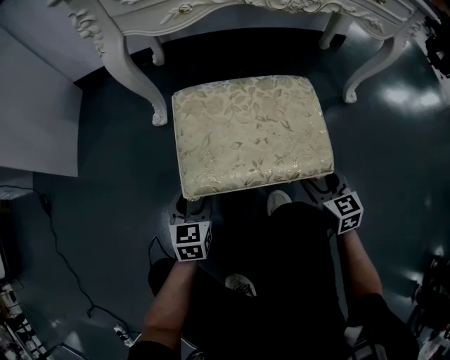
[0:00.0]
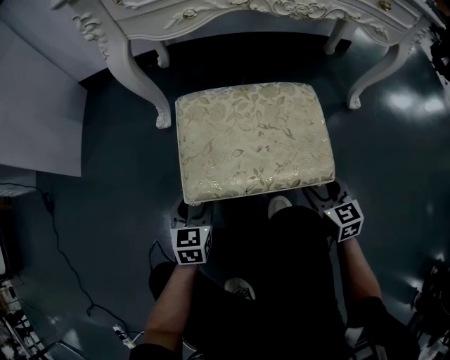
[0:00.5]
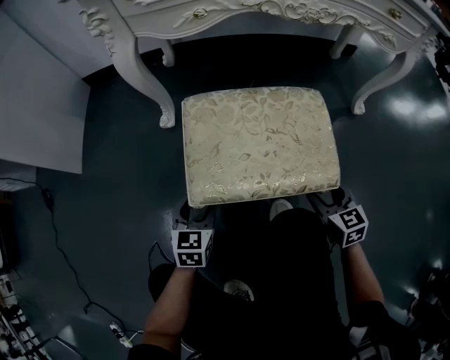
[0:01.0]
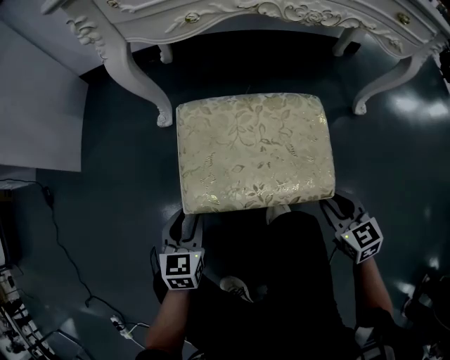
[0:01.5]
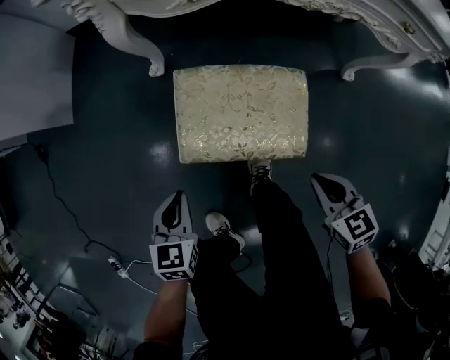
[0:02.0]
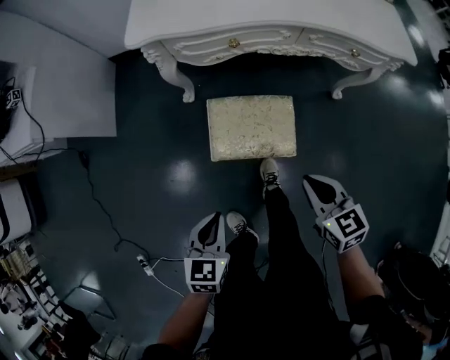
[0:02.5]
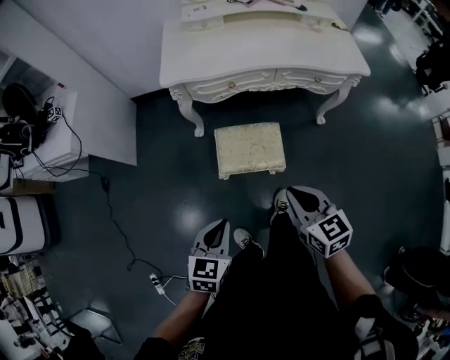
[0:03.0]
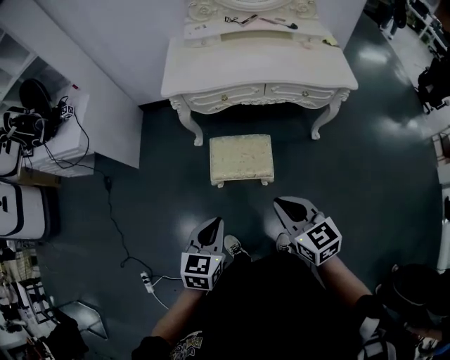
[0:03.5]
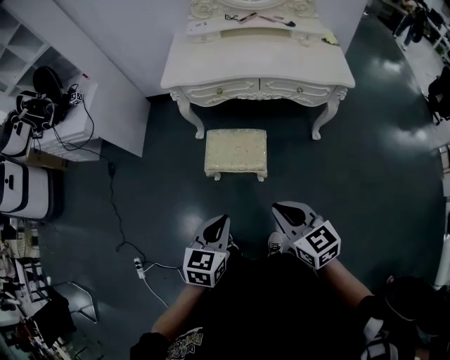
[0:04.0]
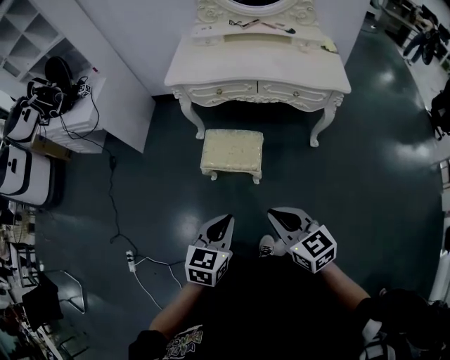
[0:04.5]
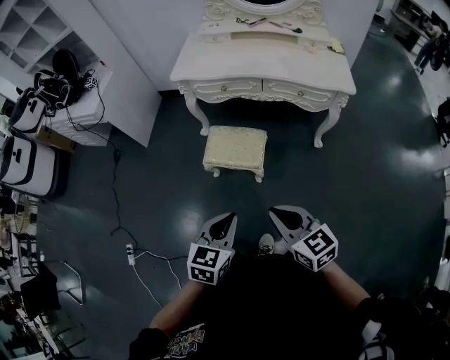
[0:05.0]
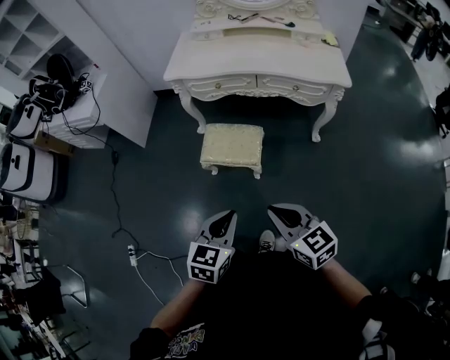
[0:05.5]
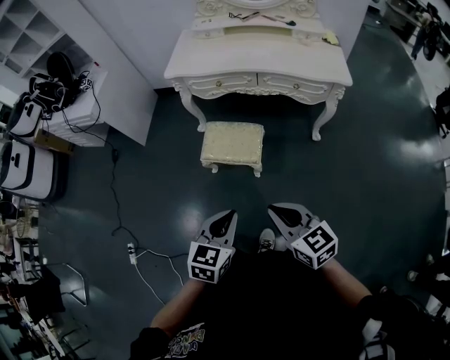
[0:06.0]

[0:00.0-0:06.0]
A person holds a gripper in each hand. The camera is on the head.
0:00.0 to 0:02.0: The grippers both shift upward by approximately 20 cm. The left gripper closes; the right gripper turns by roughly 20 degrees, and closes up.
0:02.0 to 0:04.0: Both grippers move upward and backward, about 60 cm. The right gripper turns by roughly 20 degrees.
0:04.0 to 0:06.0: The left gripper travels to the right and backward by roughly 10 cm, while the right gripper travels backward by approximately 5 cm.

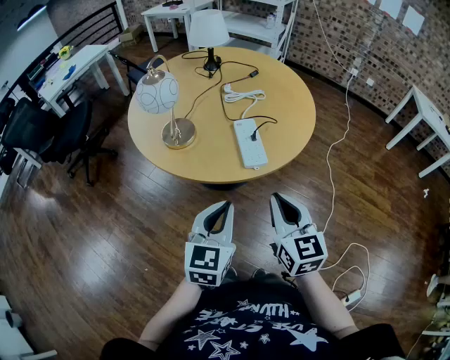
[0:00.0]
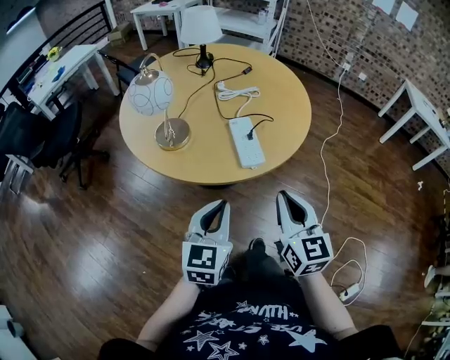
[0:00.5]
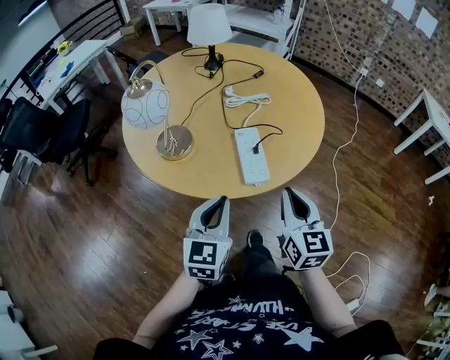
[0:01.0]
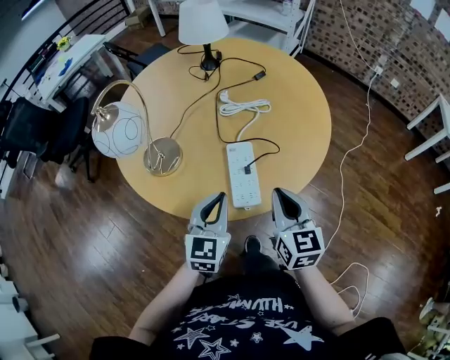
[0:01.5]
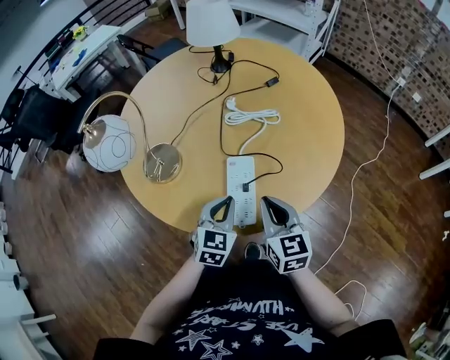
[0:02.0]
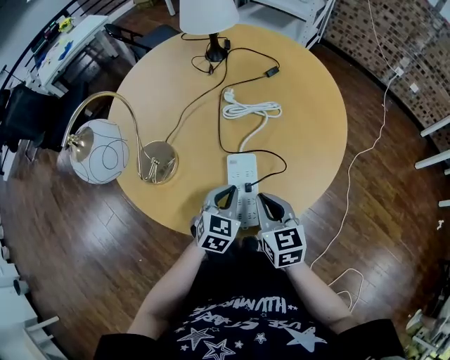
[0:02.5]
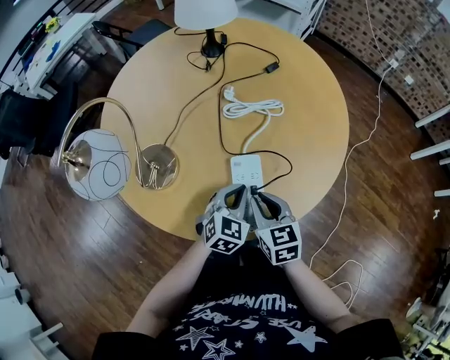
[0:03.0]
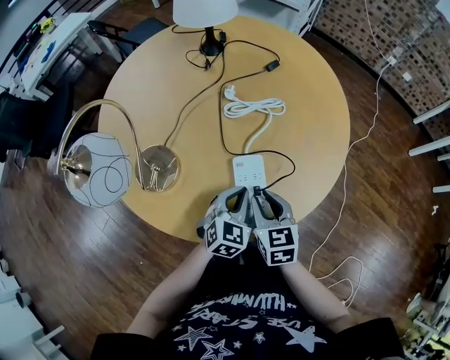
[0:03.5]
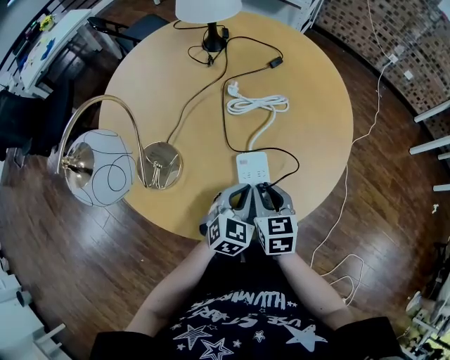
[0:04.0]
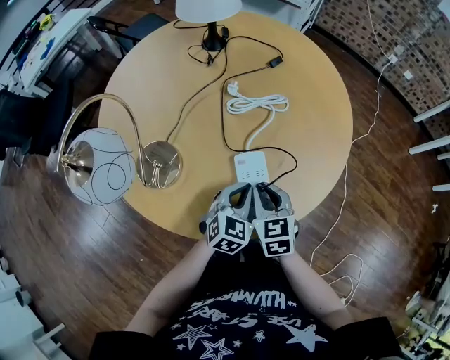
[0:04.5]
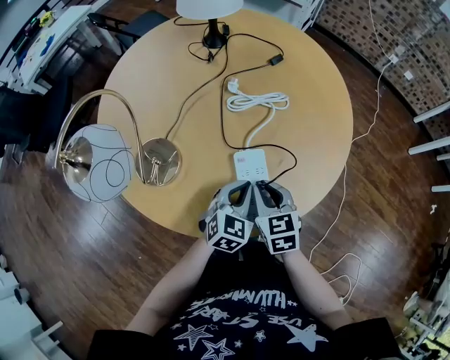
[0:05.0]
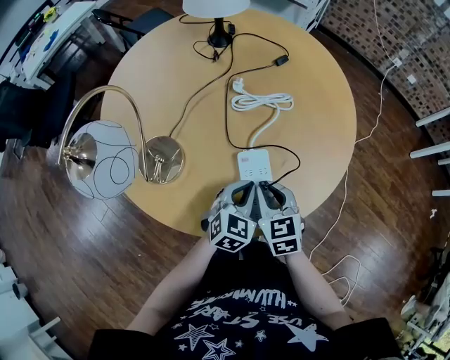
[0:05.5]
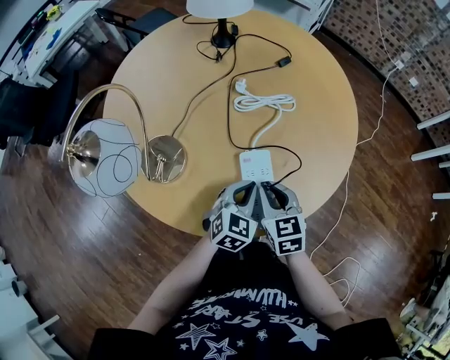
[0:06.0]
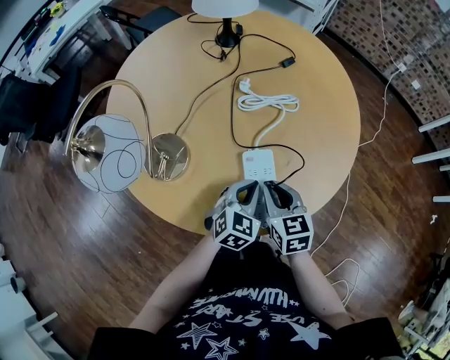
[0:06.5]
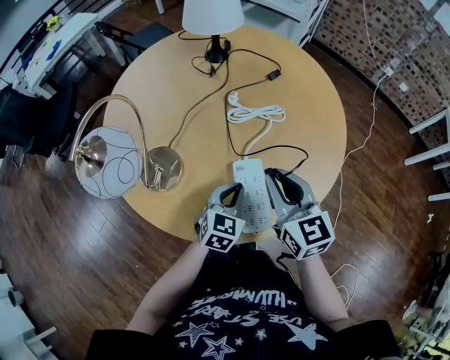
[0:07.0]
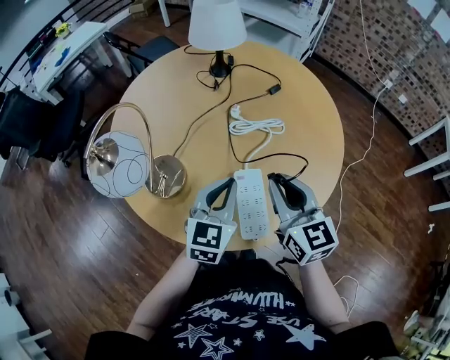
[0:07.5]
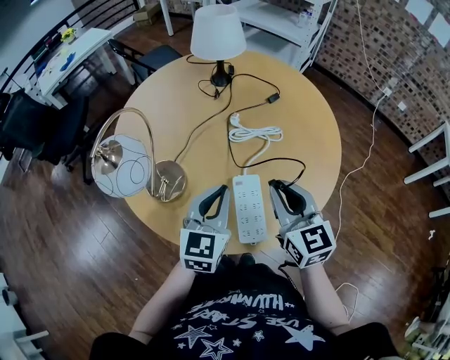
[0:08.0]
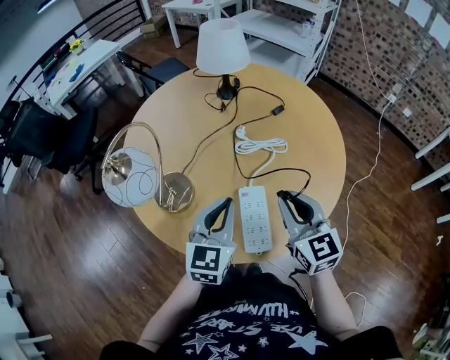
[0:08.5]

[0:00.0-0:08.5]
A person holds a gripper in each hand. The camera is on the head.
0:00.0 to 0:02.0: Both grippers travel together forward and downward, some 25 cm. The left gripper rotates approximately 20 degrees.
0:02.0 to 0:04.0: The right gripper is displaced downward by some 10 cm, and swivels roughly 20 degrees; the left gripper ends up about 5 cm from where it was.
0:04.0 to 0:06.5: There are only small adjustments of the grippers.
0:06.5 to 0:08.5: The grippers both shift upward by about 15 cm. The left gripper rotates approximately 30 degrees, while the right gripper turns by some 20 degrees.

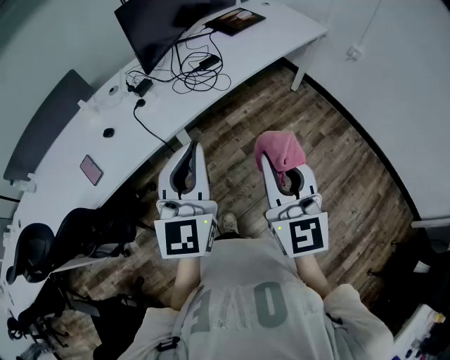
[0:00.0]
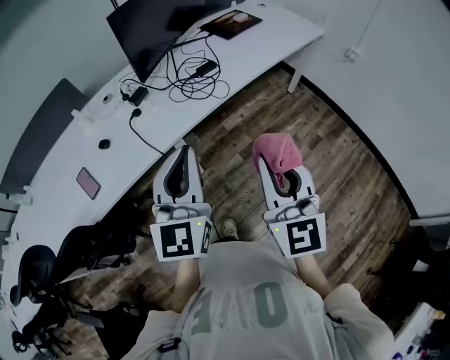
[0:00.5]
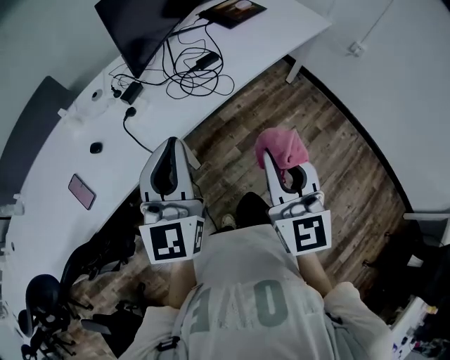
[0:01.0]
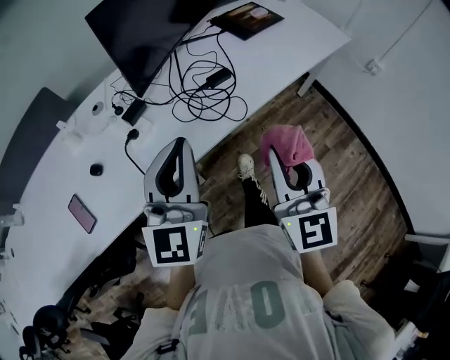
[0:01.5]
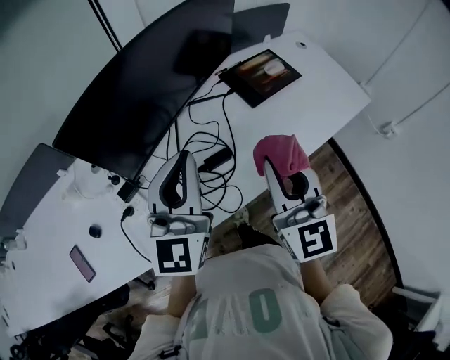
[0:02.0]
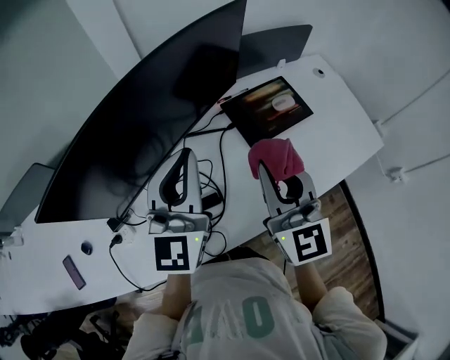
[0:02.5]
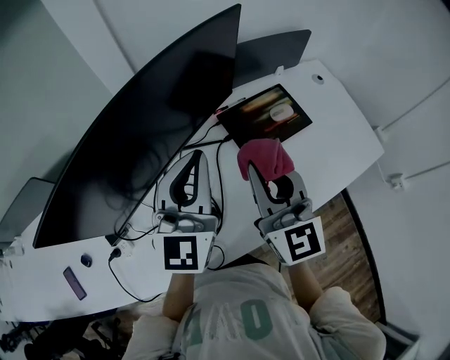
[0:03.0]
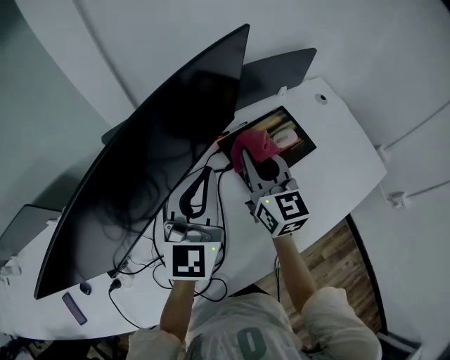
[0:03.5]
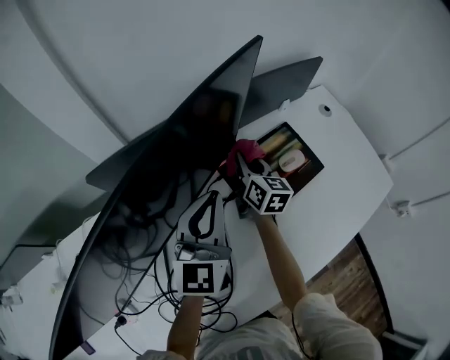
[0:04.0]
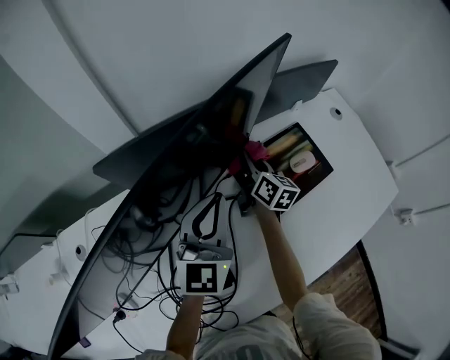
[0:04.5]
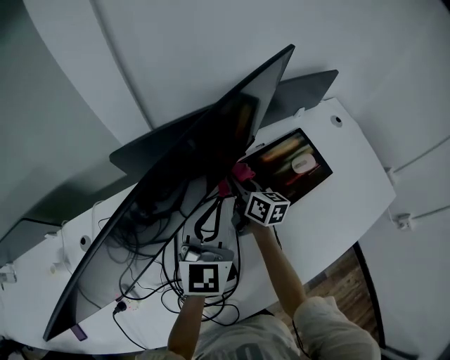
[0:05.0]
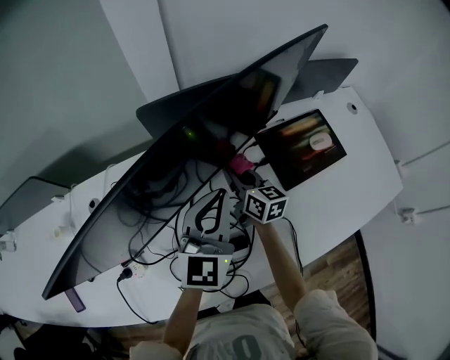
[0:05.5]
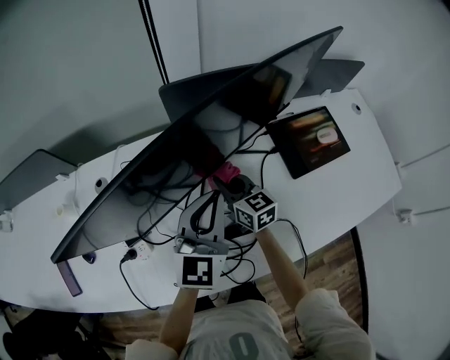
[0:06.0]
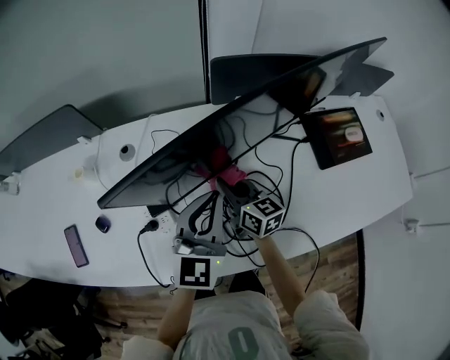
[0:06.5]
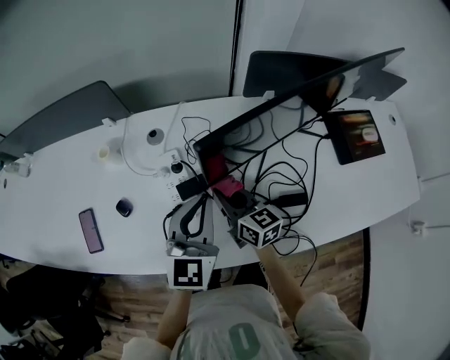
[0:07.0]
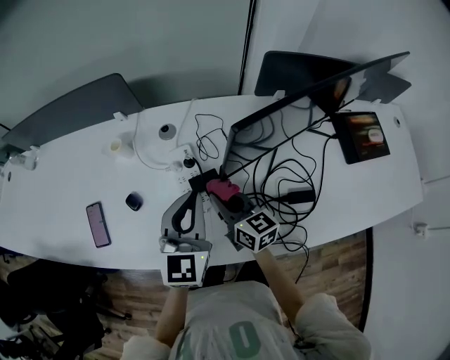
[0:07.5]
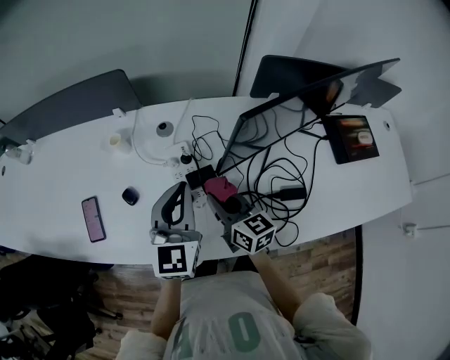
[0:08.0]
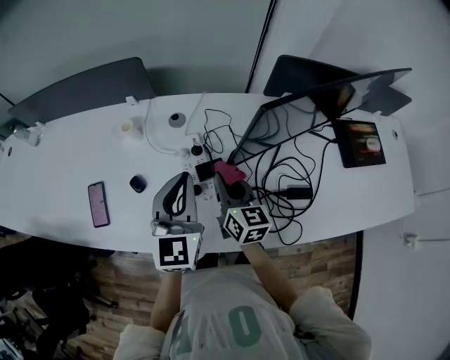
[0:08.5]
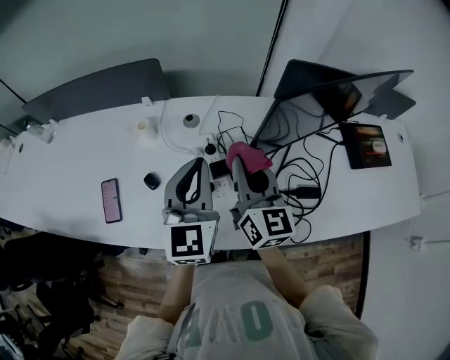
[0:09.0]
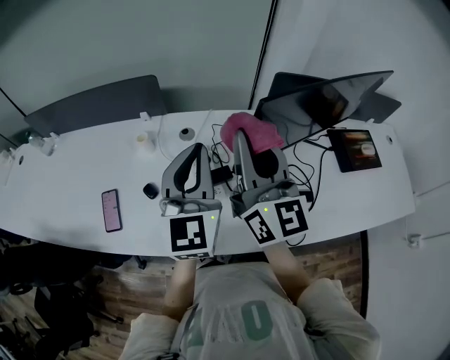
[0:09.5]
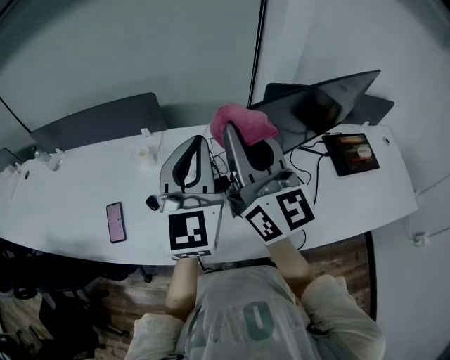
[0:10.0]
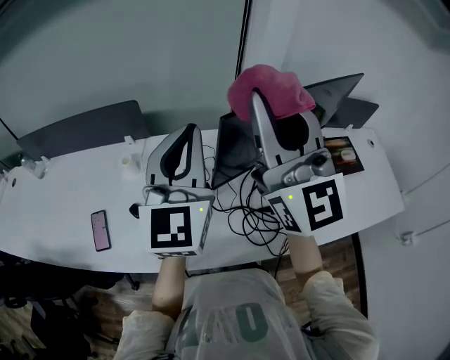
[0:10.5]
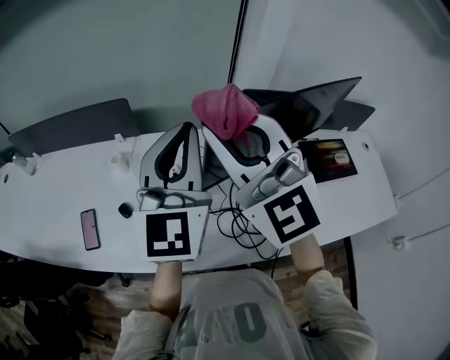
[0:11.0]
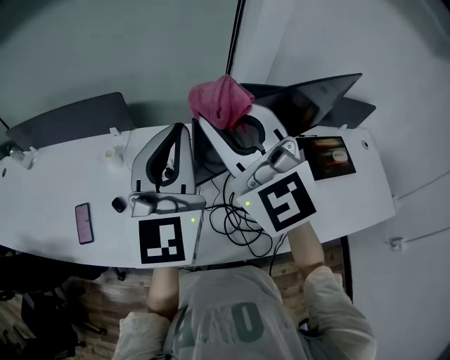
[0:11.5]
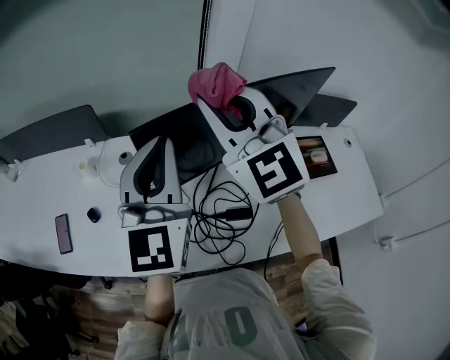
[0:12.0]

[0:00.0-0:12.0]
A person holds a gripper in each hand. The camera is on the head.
0:00.0 to 0:02.0: Both grippers are carried forward, roughly 50 cm.
0:02.0 to 0:04.0: The left gripper goes some 30 cm forward. Meanwhile the right gripper travels forward and downward by approximately 50 cm, and swivels some 40 degrees.
0:04.0 to 0:06.0: The left gripper shifts approximately 20 cm to the left and backward; the right gripper moves to the left and backward, roughly 30 cm, and swivels some 40 degrees.
0:06.0 to 0:08.0: The left gripper is displaced to the left by about 30 cm, and turns by some 20 degrees; the right gripper moves to the left and backward, roughly 30 cm.
0:08.0 to 0:10.0: The right gripper shifts some 35 cm upward, and angles its fingers upward, by roughly 40 degrees. The left gripper goes some 20 cm upward.
0:10.0 to 0:12.0: The right gripper swings left and right, roughly 10 cm each way, with 2 reversals, and twists roughly 40 degrees counterclockwise, seen from behind, while the left gripper travels to the right by roughly 10 cm.
